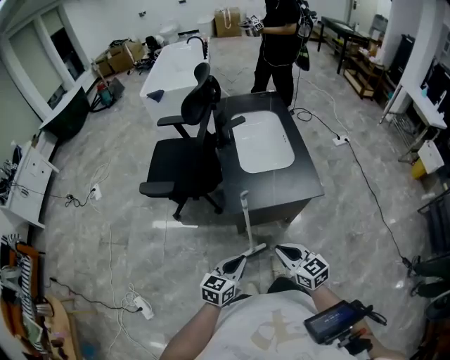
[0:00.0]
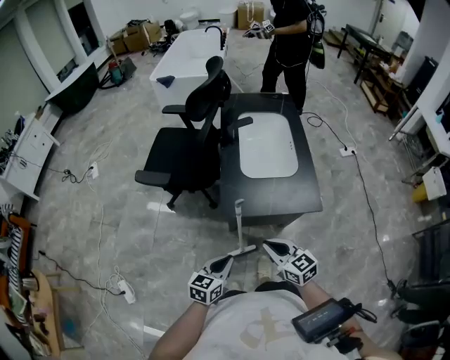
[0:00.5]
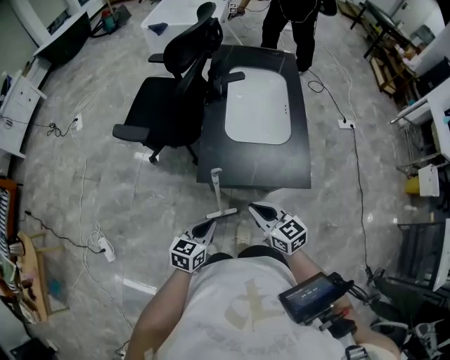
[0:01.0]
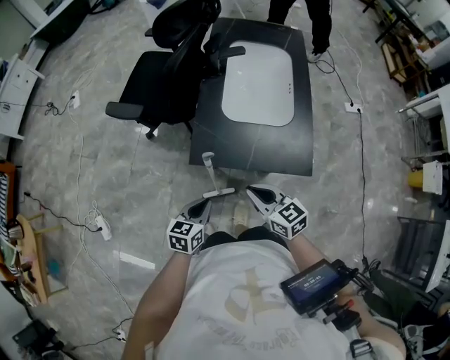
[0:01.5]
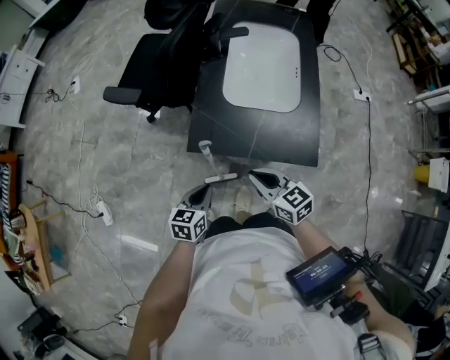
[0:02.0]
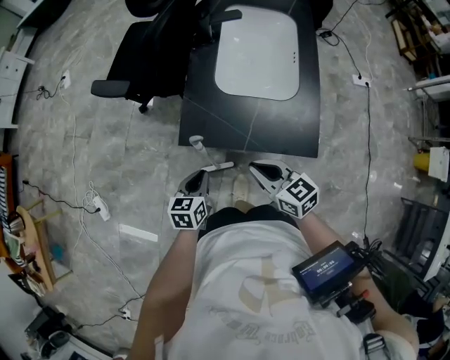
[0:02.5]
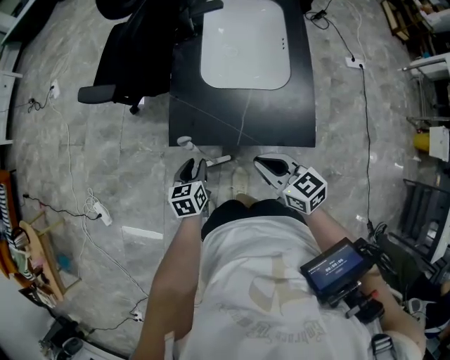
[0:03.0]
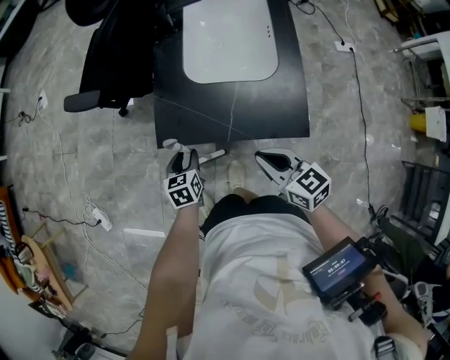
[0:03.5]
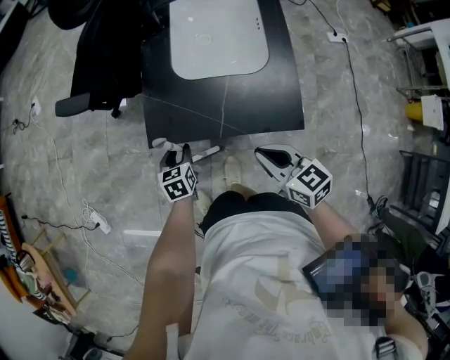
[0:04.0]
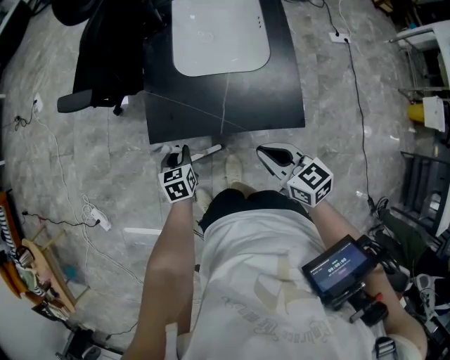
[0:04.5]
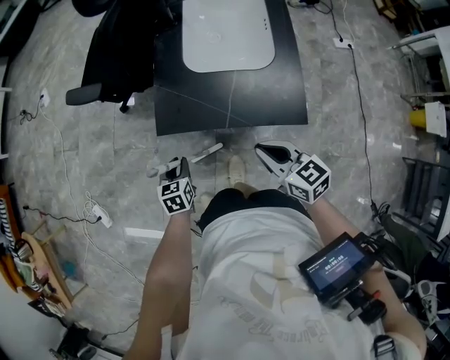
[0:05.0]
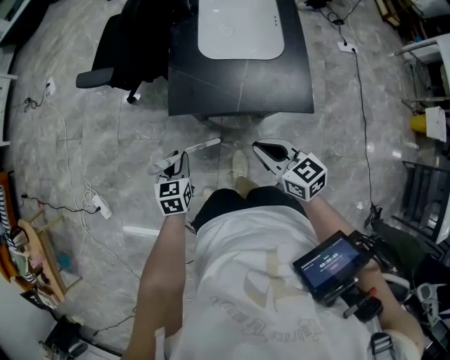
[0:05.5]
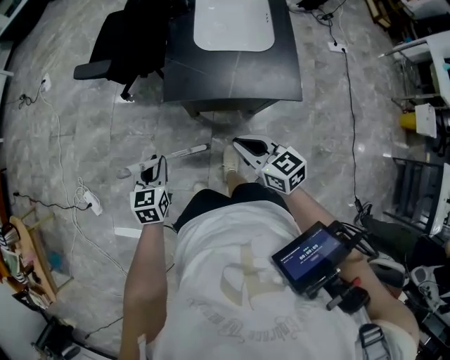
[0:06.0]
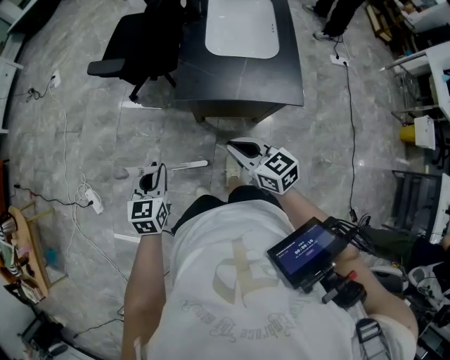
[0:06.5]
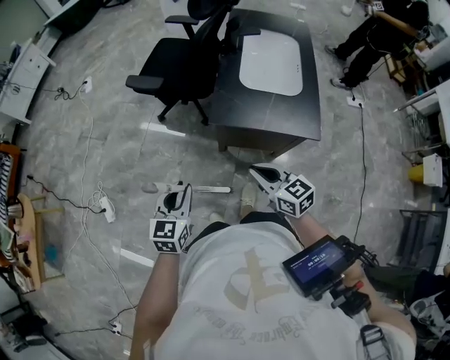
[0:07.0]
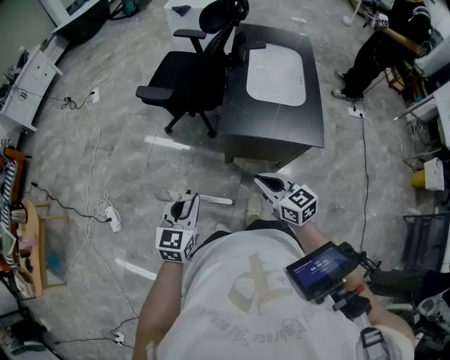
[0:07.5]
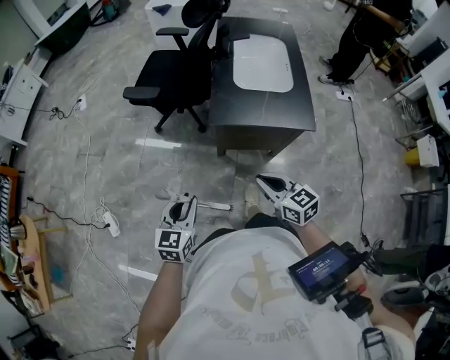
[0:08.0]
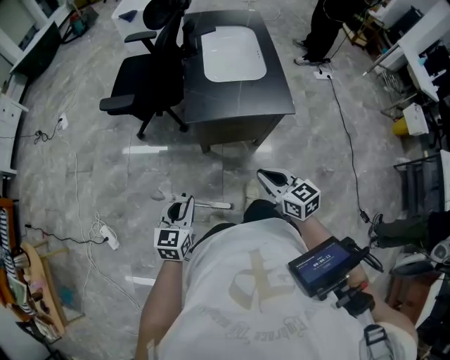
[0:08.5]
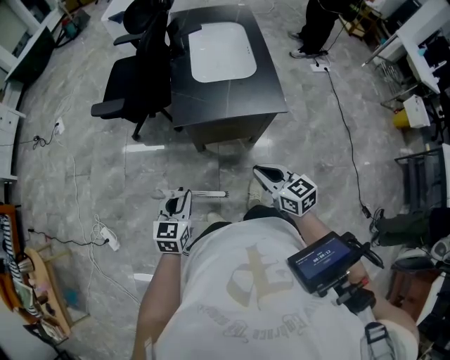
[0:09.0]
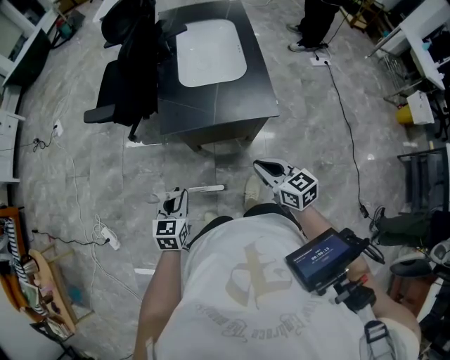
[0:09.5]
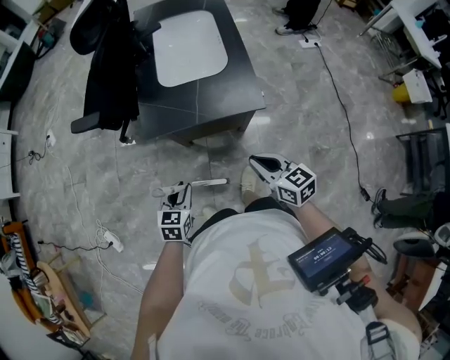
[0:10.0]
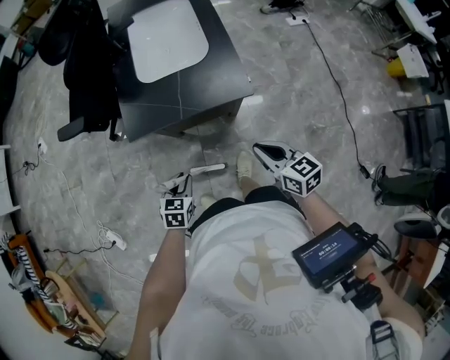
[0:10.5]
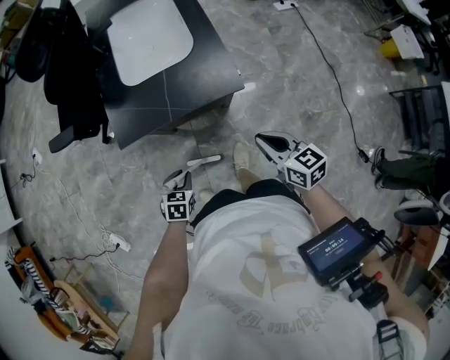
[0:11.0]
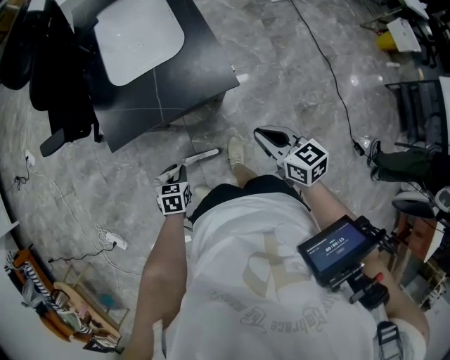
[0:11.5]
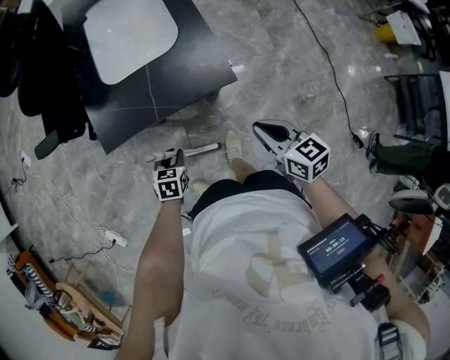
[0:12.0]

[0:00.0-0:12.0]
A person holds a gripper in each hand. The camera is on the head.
0:00.0 to 0:02.0: The right gripper is displaced forward, downward and to the right by about 15 cm, and changes its angle by some 20 degrees. Meanwhile the left gripper is displaced downward, forward and to the right by about 15 cm, and turns by roughly 30 degrees.
0:02.0 to 0:04.0: The right gripper travels to the right by approximately 10 cm; the left gripper goes approximately 15 cm downward and forward, and opens.
0:04.0 to 0:06.0: The right gripper is displaced to the left and backward by some 15 cm. The left gripper heads to the left, upward and backward, covering roughly 25 cm.
0:06.0 to 0:08.0: The left gripper heads upward, backward and to the left, covering about 15 cm. The right gripper shifts approximately 10 cm to the left, backward and upward.
0:08.0 to 0:10.0: The right gripper moves to the right, approximately 20 cm. The left gripper travels to the right and downward by roughly 20 cm, and rotates about 20 degrees.
0:10.0 to 0:12.0: The right gripper heads to the right, covering about 10 cm. Meanwhile the left gripper travels downward and forward by roughly 15 cm.

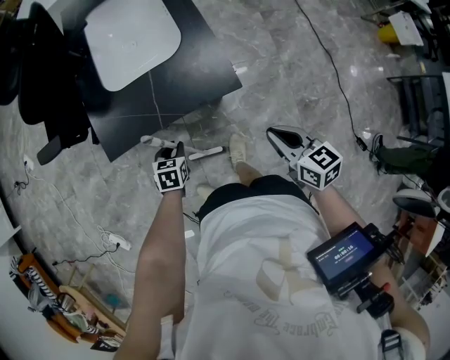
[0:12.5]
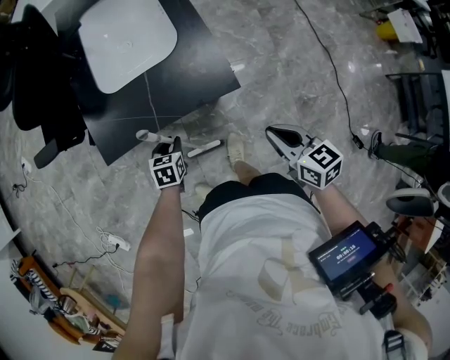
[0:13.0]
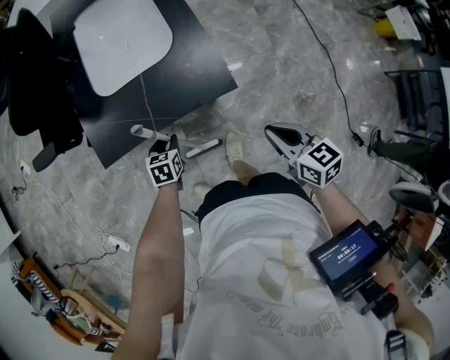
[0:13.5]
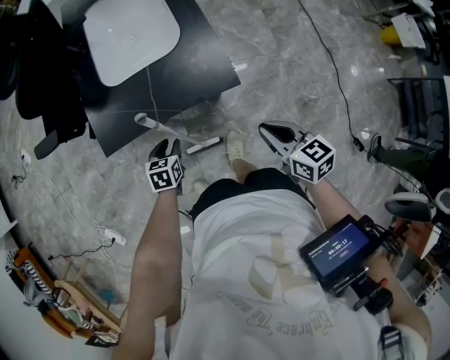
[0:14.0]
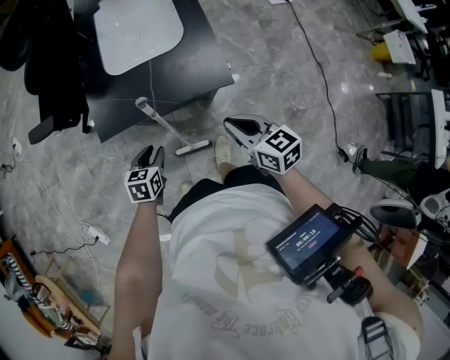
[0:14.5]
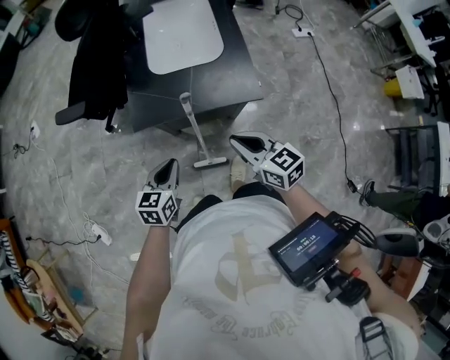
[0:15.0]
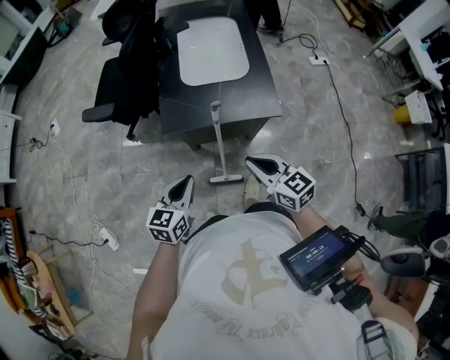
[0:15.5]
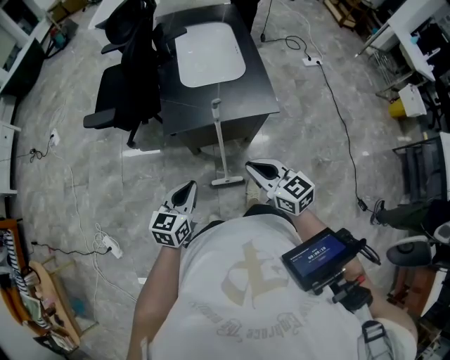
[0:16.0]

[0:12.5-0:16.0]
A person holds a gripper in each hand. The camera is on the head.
0:12.5 to 0:14.5: The right gripper shifts roughly 5 cm to the left, while the left gripper goes approximately 5 cm upward.
0:14.5 to 0:16.0: The right gripper is displaced to the left, backward and upward by approximately 15 cm. Meanwhile the left gripper heads upward and backward, covering about 20 cm, turns by about 20 degrees, and closes.

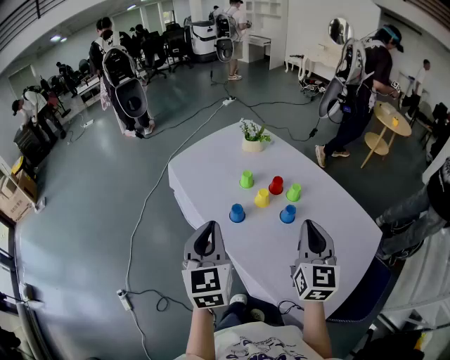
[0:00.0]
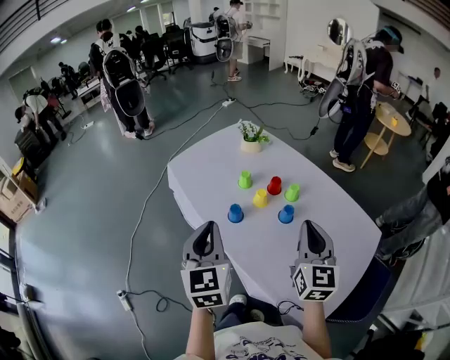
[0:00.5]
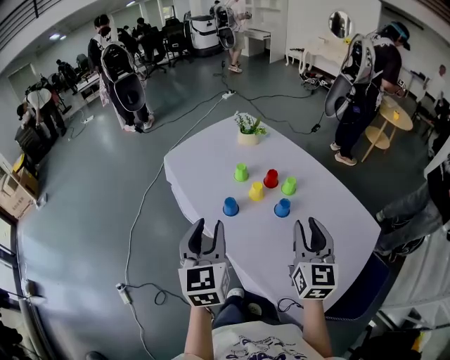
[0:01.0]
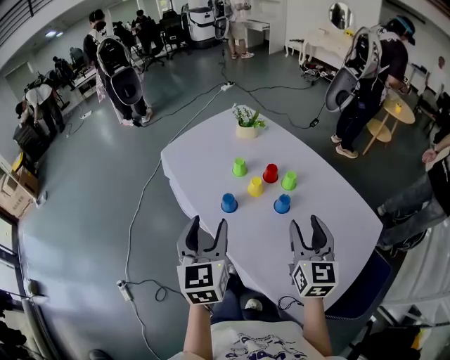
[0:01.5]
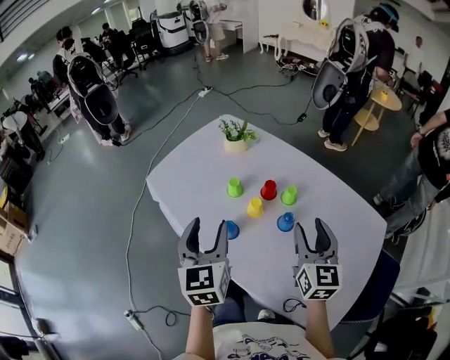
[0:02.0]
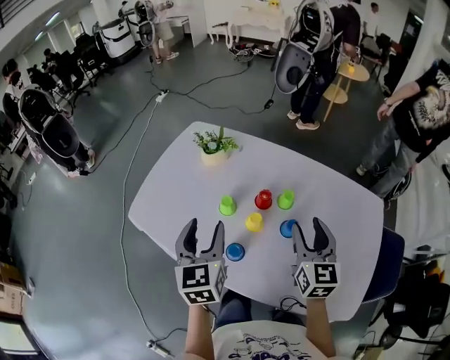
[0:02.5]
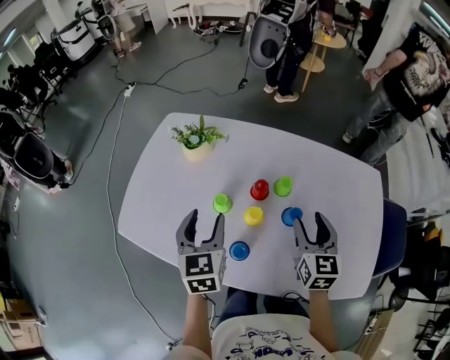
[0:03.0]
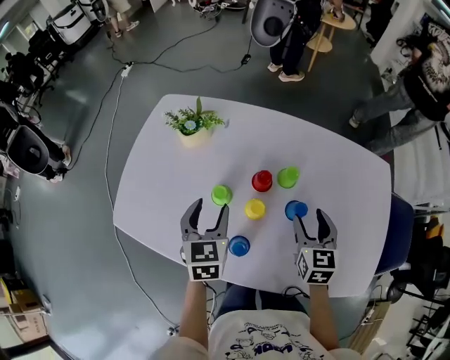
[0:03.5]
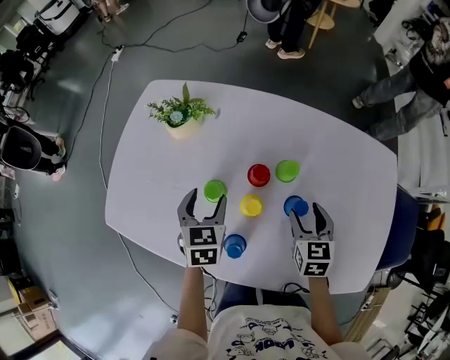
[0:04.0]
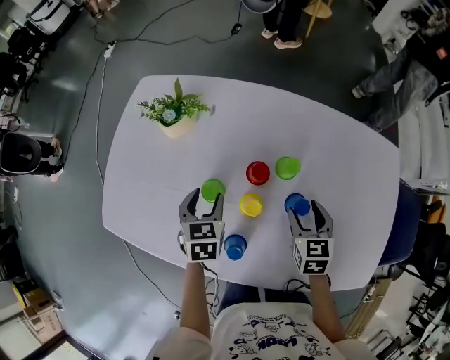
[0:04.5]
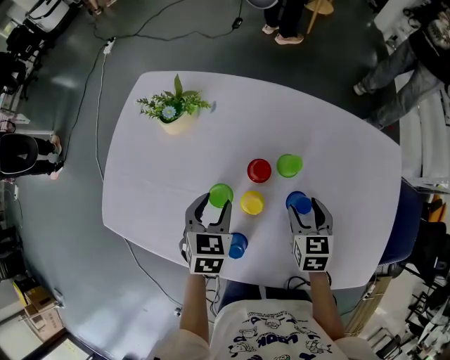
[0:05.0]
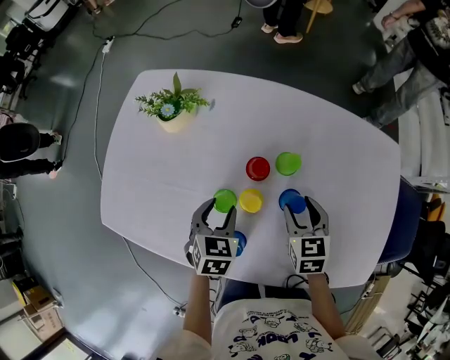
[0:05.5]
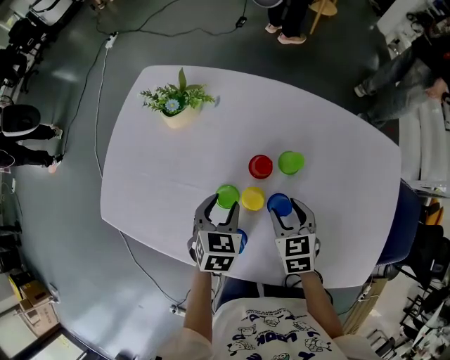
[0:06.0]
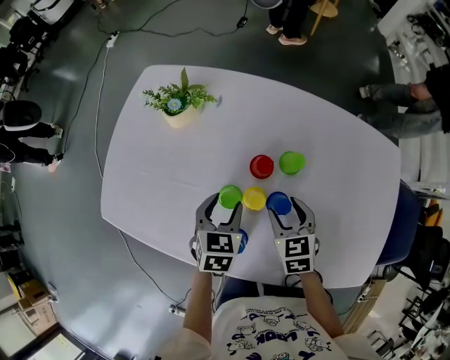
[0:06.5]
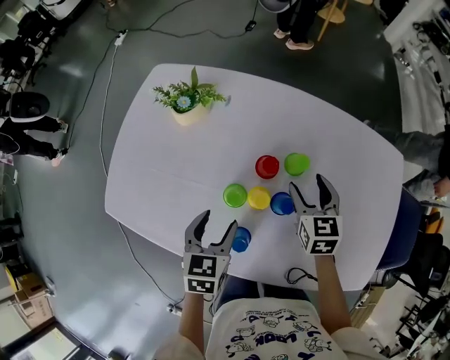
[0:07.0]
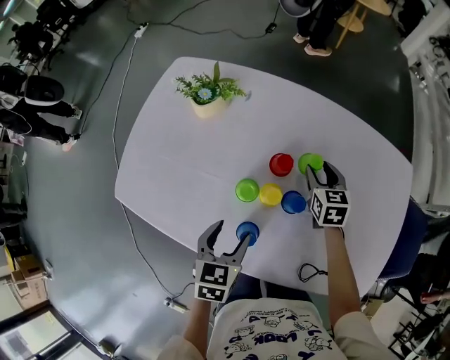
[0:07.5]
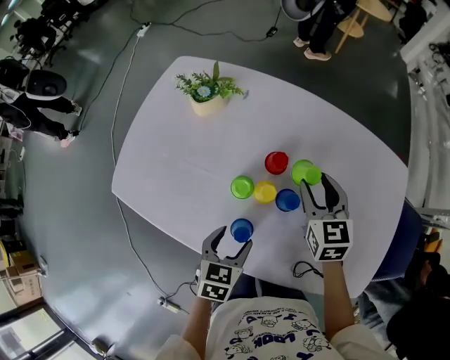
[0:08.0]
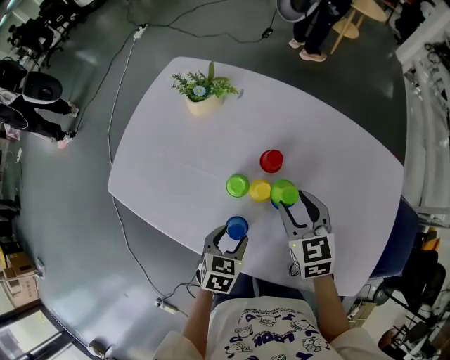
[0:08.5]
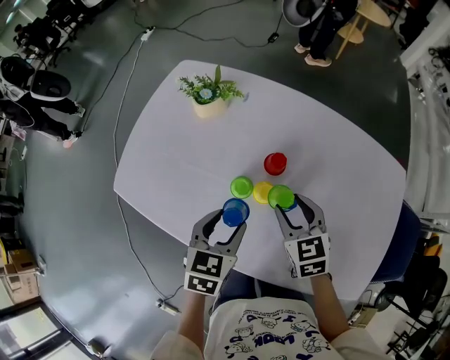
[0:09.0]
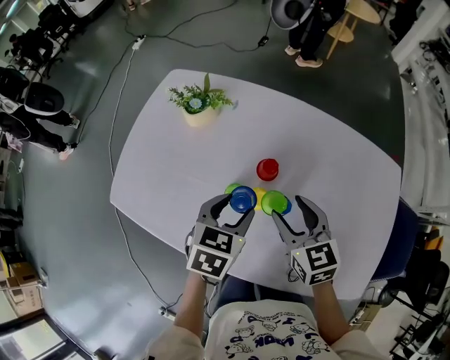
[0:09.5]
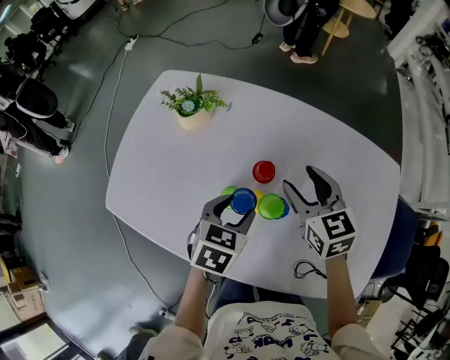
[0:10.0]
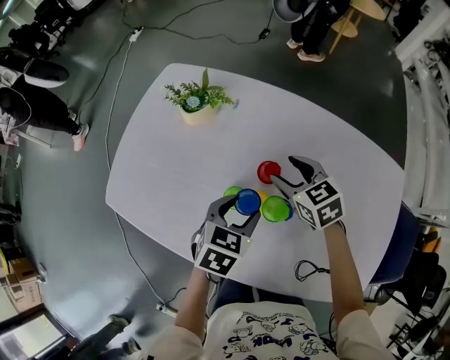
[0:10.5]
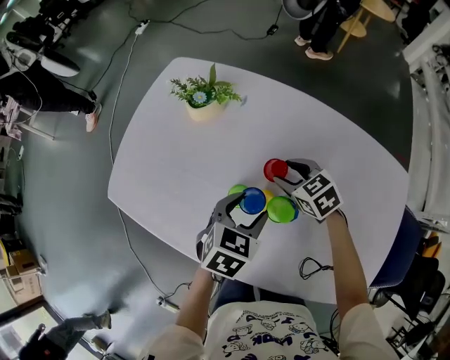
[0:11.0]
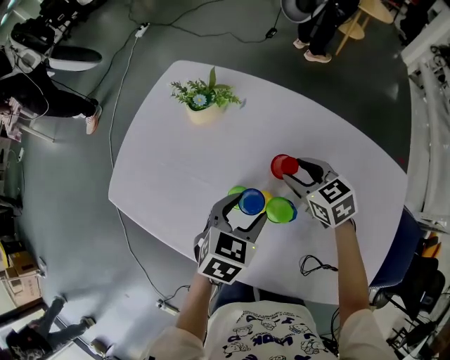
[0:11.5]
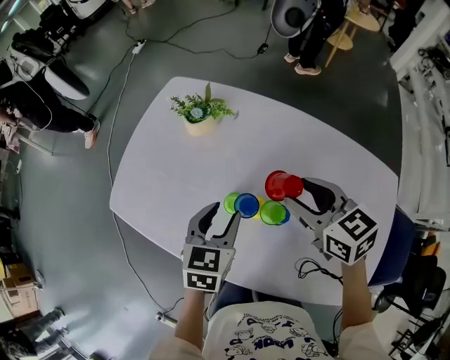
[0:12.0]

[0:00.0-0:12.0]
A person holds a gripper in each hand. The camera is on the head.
0:00.0 to 0:02.0: The right gripper is displaced forward and downward by roughly 15 cm, and opens; the left gripper goes roughly 15 cm forward, and opens.
0:02.0 to 0:04.0: The right gripper heads downward, covering some 20 cm, and angles its fingers downward, by approximately 30 degrees; the left gripper changes place by roughly 35 cm, and turns by roughly 40 degrees.
0:04.0 to 0:06.0: The right gripper shifts some 5 cm to the left. Meanwhile the left gripper changes place by approximately 5 cm.
0:06.0 to 0:08.0: The left gripper heads backward, covering some 15 cm. The right gripper moves upward and forward, approximately 10 cm.
0:08.0 to 0:10.0: The right gripper travels backward and back again, some 5 cm each way. The left gripper moves forward and upward, some 15 cm.
0:10.0 to 0:12.0: The right gripper goes downward and returns, approximately 15 cm each way; the left gripper moves to the left, about 5 cm.
